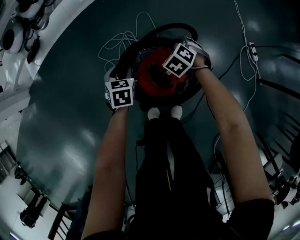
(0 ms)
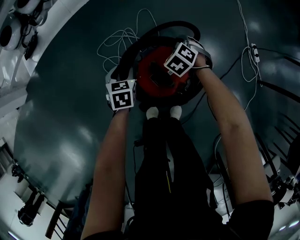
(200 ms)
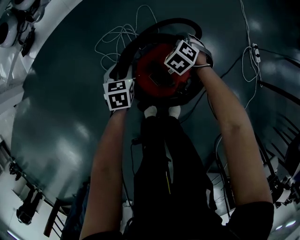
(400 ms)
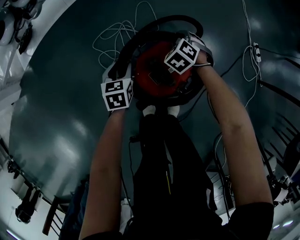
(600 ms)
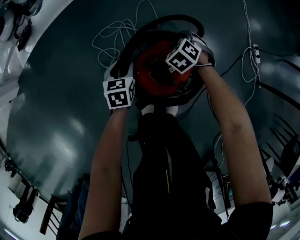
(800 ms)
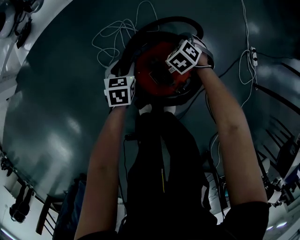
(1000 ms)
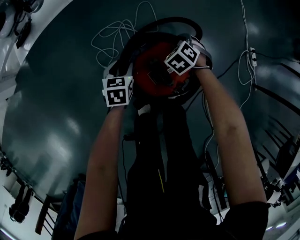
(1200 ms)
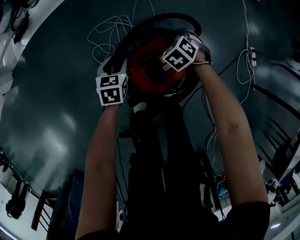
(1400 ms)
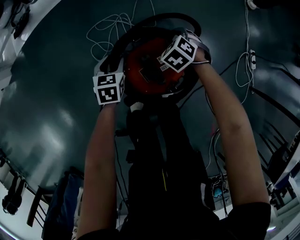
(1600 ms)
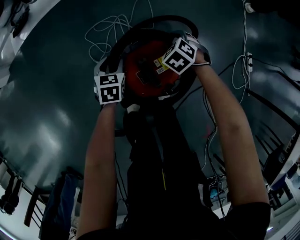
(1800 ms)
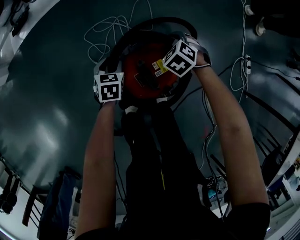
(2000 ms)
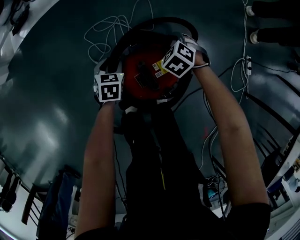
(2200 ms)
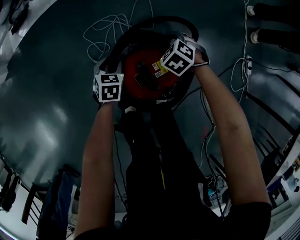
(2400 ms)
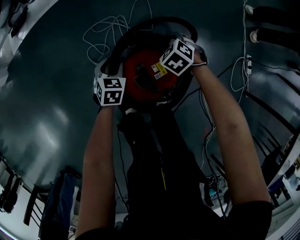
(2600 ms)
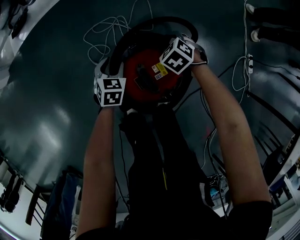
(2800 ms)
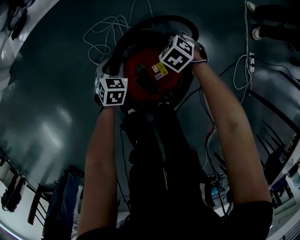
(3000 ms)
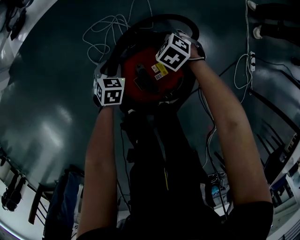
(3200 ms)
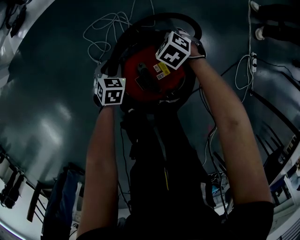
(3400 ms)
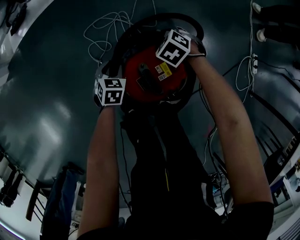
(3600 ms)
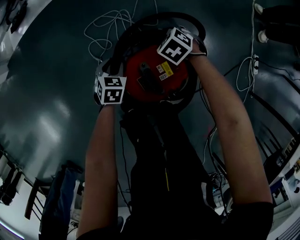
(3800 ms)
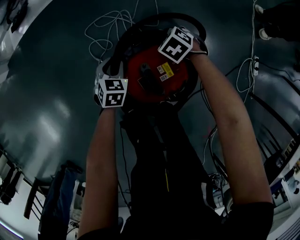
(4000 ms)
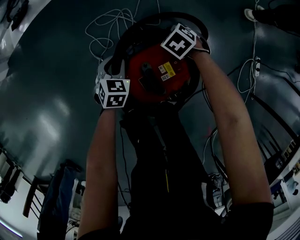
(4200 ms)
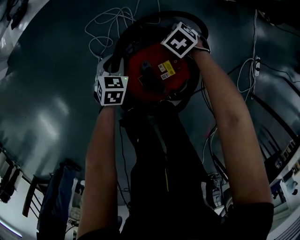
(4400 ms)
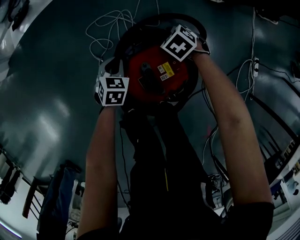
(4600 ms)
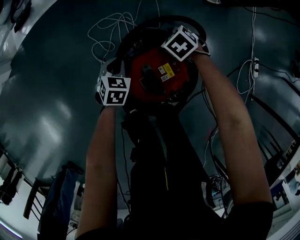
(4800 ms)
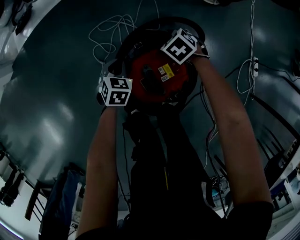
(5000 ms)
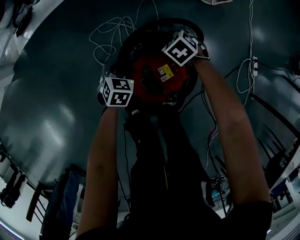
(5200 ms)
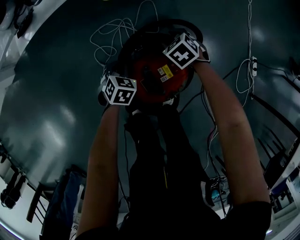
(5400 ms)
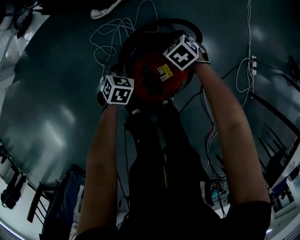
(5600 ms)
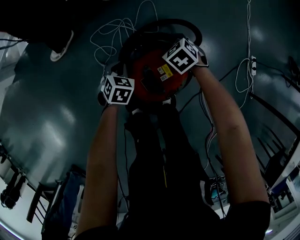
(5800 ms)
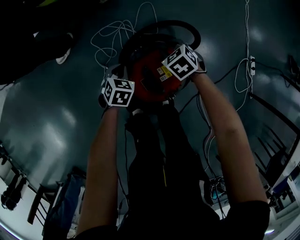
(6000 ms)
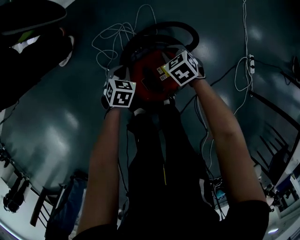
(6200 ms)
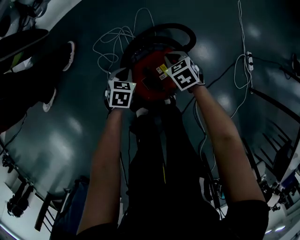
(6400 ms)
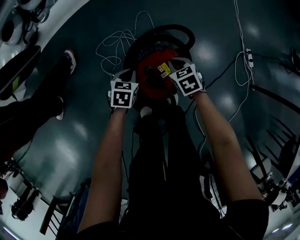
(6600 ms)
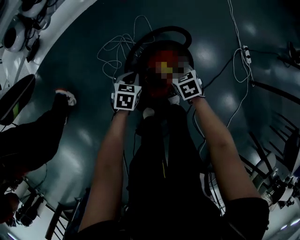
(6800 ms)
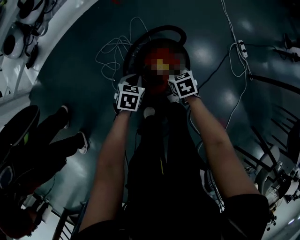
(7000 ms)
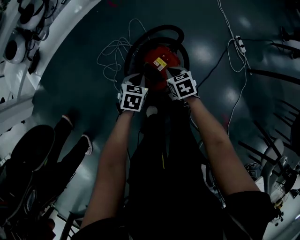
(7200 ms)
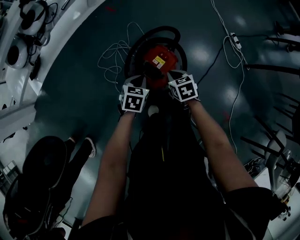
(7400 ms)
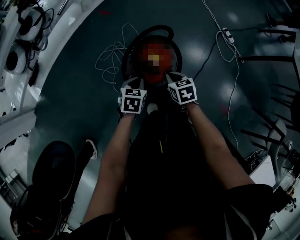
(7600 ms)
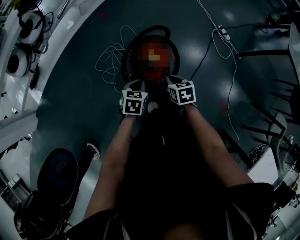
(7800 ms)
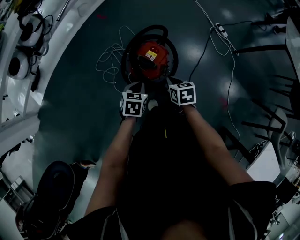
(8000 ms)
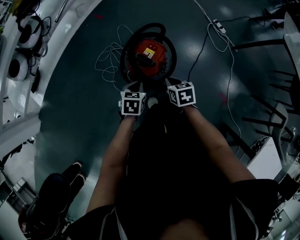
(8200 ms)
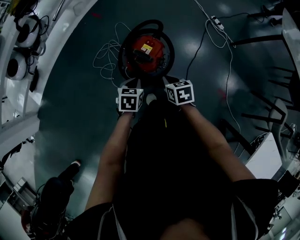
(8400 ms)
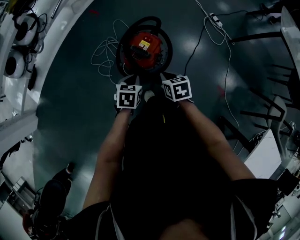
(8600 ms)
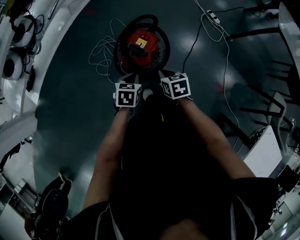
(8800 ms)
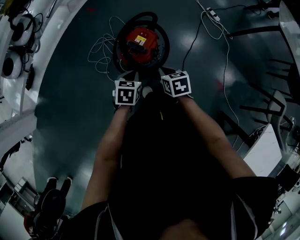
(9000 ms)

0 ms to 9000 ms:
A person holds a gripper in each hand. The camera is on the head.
0 ms to 1600 ms: Both grippers move downward, roughly 5 cm.
1600 ms to 3000 ms: The grippers move only a little.
3000 ms to 4400 ms: The right gripper shifts by about 5 cm.
4400 ms to 6000 ms: The right gripper moves upward, roughly 10 cm.
6000 ms to 7600 ms: The left gripper is displaced upward by some 20 cm, and swivels some 20 degrees. The right gripper shifts by approximately 30 cm, rolls clockwise, seen from behind, by about 50 degrees, and closes up.
7600 ms to 9000 ms: The left gripper goes approximately 10 cm backward. The right gripper travels backward and upward by roughly 10 cm.

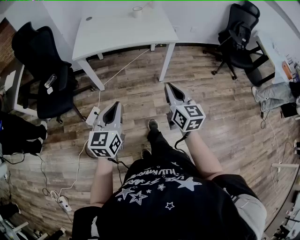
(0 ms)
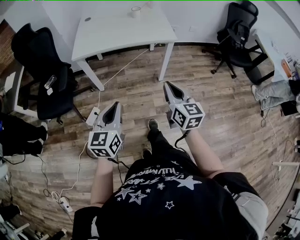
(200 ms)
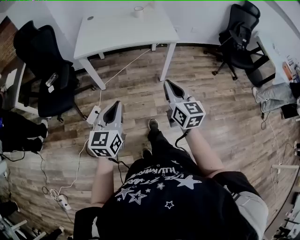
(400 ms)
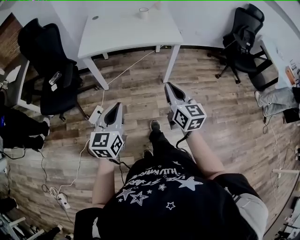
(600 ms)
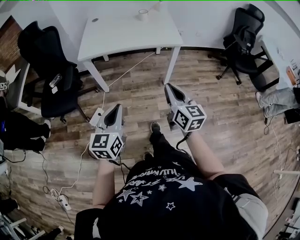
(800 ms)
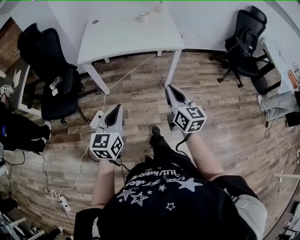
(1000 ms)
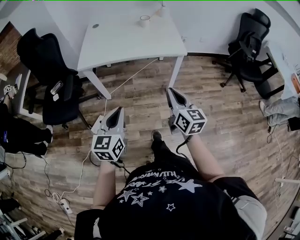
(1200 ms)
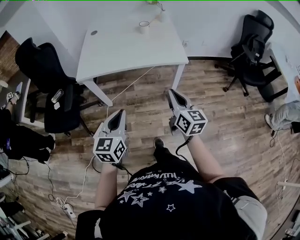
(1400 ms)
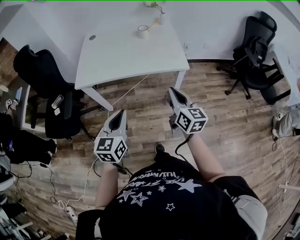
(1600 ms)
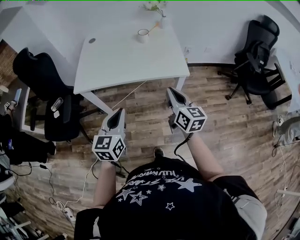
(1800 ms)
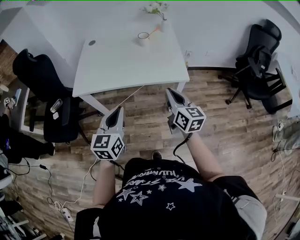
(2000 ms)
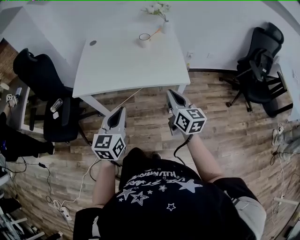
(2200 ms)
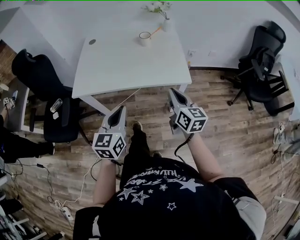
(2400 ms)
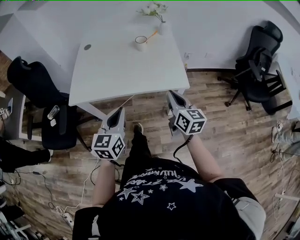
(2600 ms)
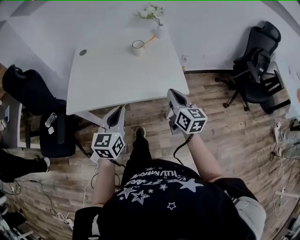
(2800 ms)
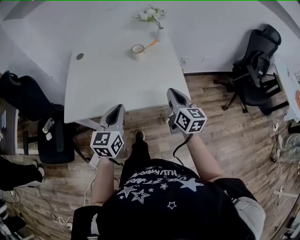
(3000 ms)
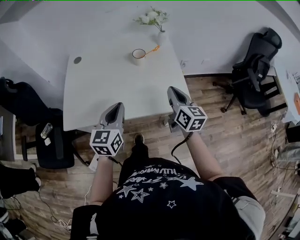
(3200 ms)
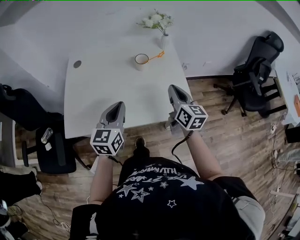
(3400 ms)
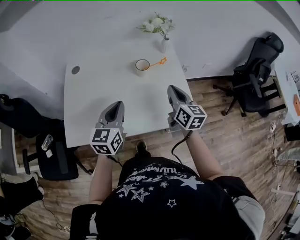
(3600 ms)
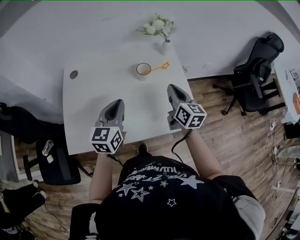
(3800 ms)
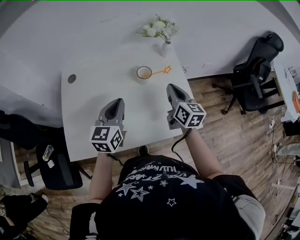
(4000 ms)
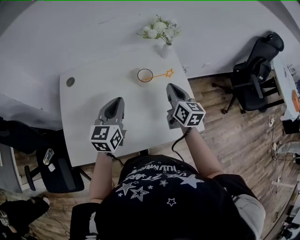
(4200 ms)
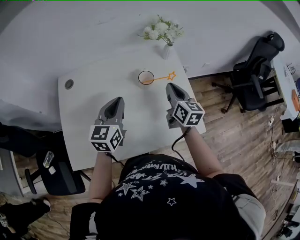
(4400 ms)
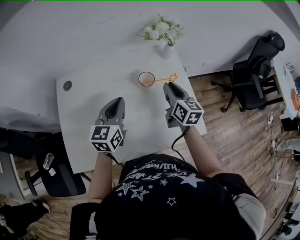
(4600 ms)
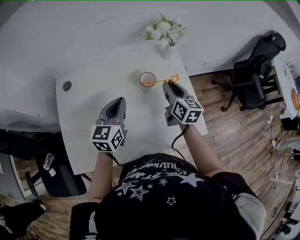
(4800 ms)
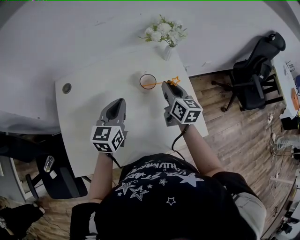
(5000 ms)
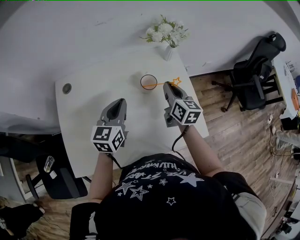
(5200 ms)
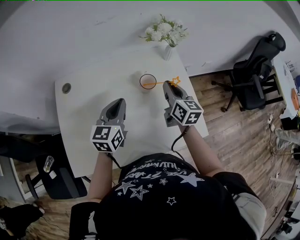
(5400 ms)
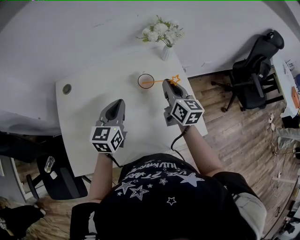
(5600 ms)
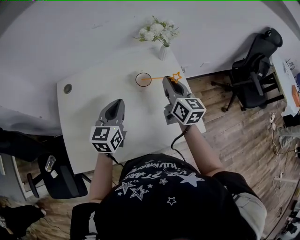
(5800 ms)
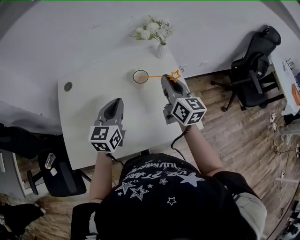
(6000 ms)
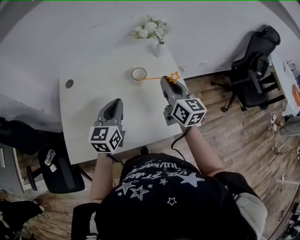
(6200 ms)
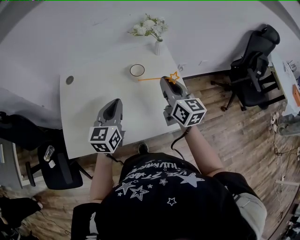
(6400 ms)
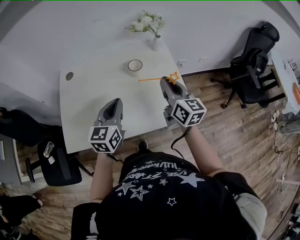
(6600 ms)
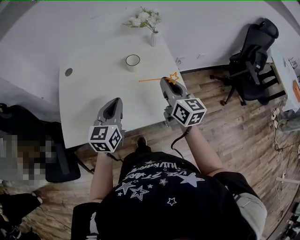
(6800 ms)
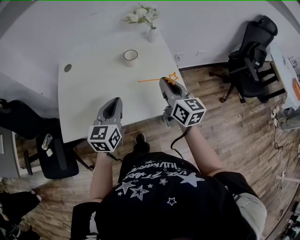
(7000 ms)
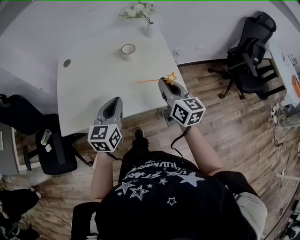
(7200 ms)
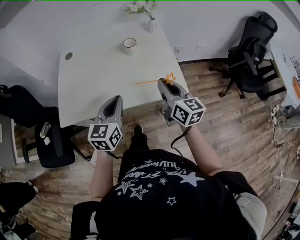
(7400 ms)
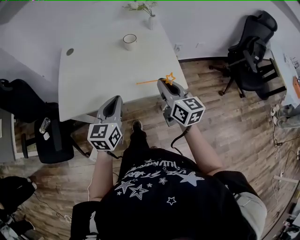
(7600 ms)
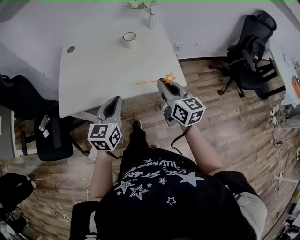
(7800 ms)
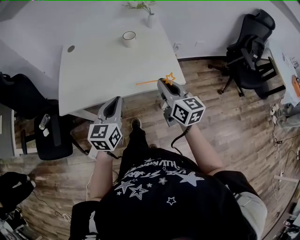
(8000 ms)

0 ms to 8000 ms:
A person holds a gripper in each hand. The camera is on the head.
0 ms to 1600 ms: Both grippers move forward, some 20 cm.
1600 ms to 3200 ms: The grippers both shift forward by approximately 30 cm.
3200 ms to 4800 ms: Both grippers move forward, some 25 cm. The right gripper opens up.
4800 ms to 6400 ms: The left gripper travels backward by roughly 10 cm, while the right gripper heads backward and upward, covering roughly 15 cm.
6400 ms to 8000 ms: The grippers both shift backward by roughly 25 cm.

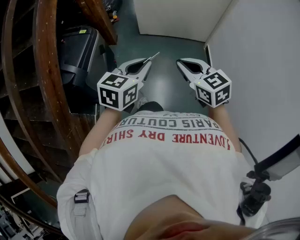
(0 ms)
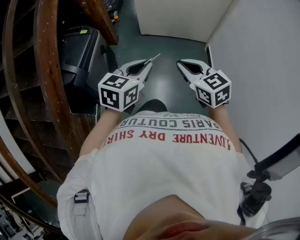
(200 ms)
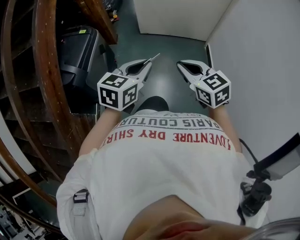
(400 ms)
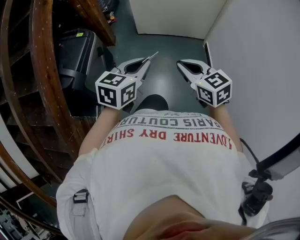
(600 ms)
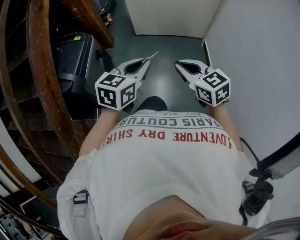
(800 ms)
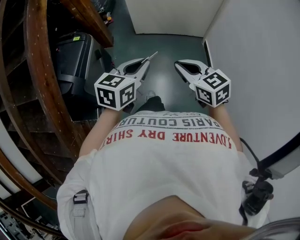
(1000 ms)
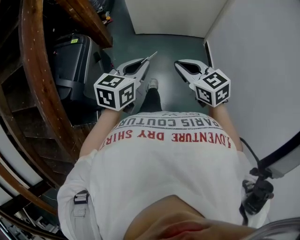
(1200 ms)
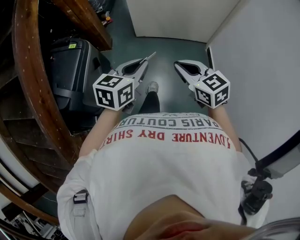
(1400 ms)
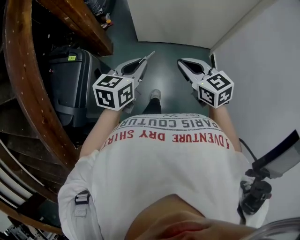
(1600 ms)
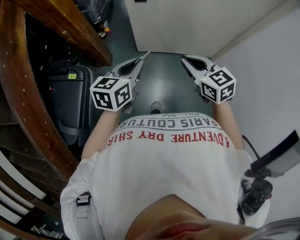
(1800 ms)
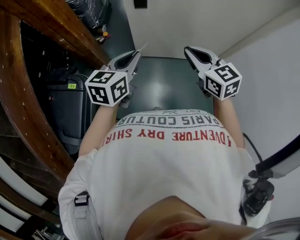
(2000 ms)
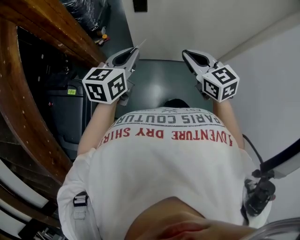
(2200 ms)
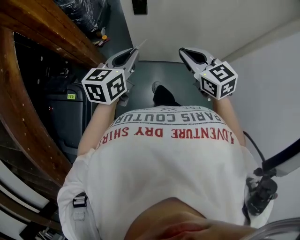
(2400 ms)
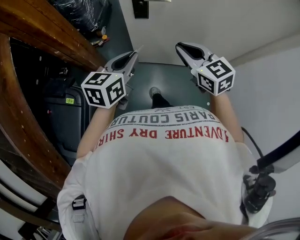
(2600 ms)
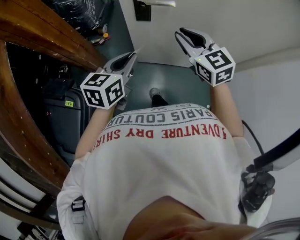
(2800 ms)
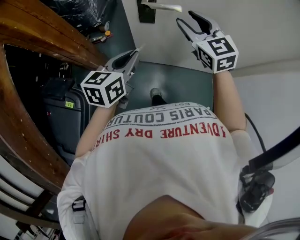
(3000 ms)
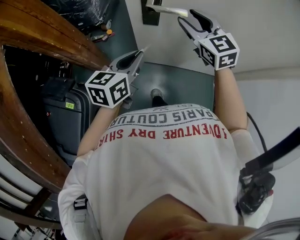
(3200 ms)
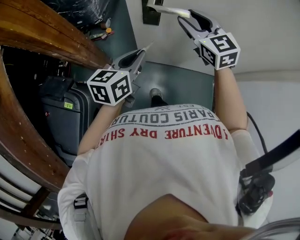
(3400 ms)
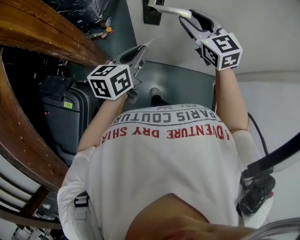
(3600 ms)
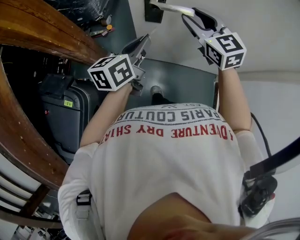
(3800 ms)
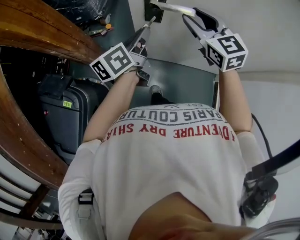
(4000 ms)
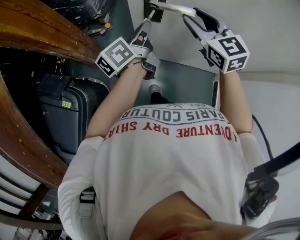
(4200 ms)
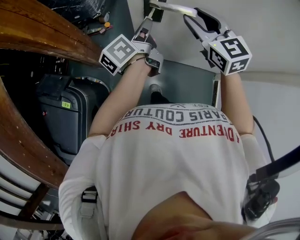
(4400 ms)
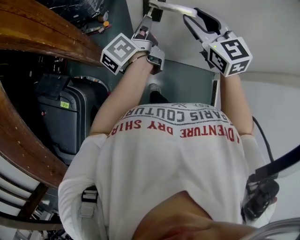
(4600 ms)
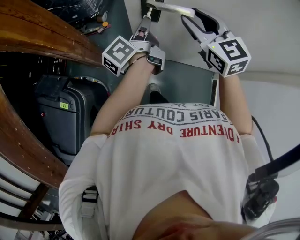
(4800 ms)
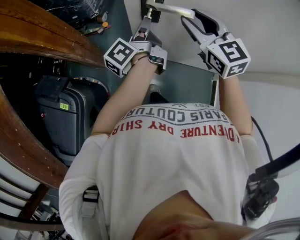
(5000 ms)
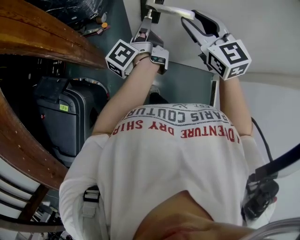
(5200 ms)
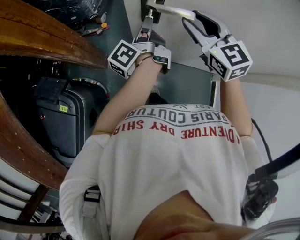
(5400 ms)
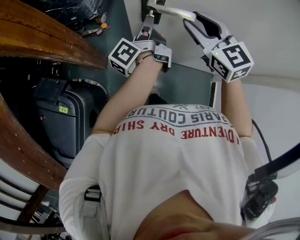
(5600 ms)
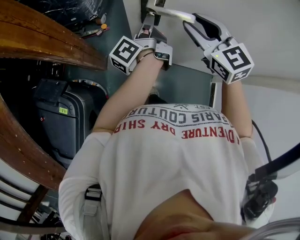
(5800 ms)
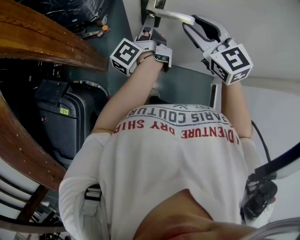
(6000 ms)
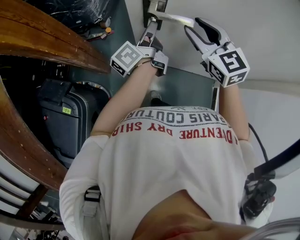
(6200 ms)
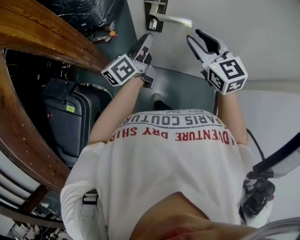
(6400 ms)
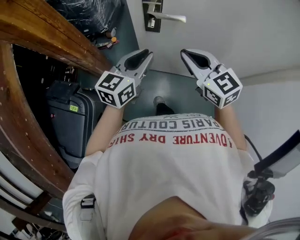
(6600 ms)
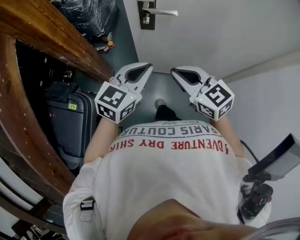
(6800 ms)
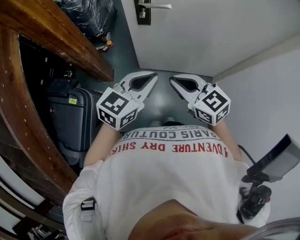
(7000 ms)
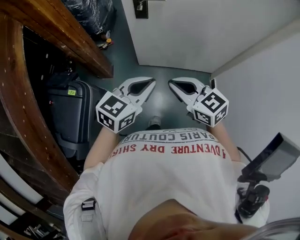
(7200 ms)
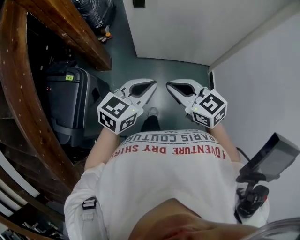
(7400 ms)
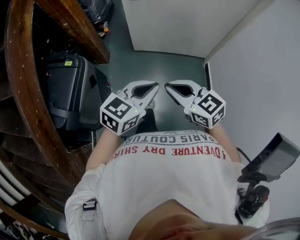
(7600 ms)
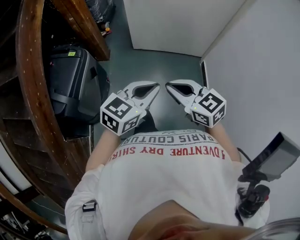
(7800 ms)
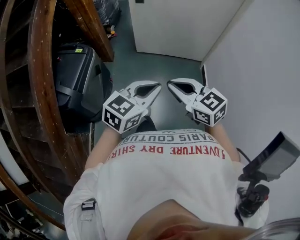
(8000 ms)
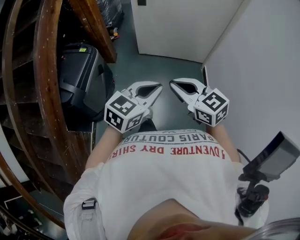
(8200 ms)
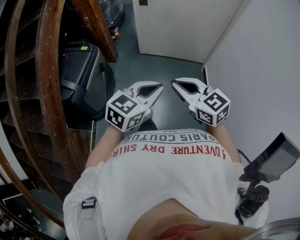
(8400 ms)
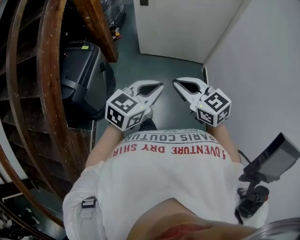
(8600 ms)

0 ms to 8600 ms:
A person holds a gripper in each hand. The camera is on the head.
0 ms to 1400 ms: Both grippers travel together forward, roughly 20 cm.
1400 ms to 2800 ms: Both grippers are carried forward, about 50 cm.
2800 ms to 4400 ms: The left gripper shifts about 15 cm forward, and twists some 50 degrees counterclockwise, seen from behind. Meanwhile the right gripper moves forward, some 10 cm, and opens its fingers.
4400 ms to 5800 ms: The left gripper turns by roughly 20 degrees.
5800 ms to 7200 ms: The two grippers go approximately 40 cm backward. The left gripper rolls clockwise, seen from behind, by some 70 degrees, while the right gripper closes its fingers.
7200 ms to 8600 ms: Both grippers are carried backward, roughly 50 cm.
